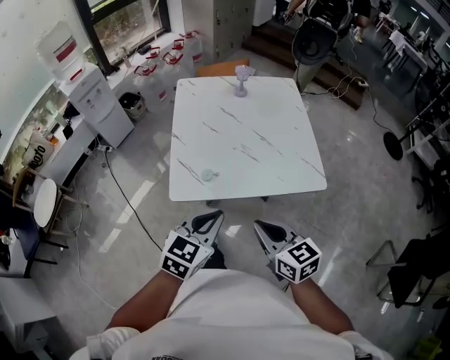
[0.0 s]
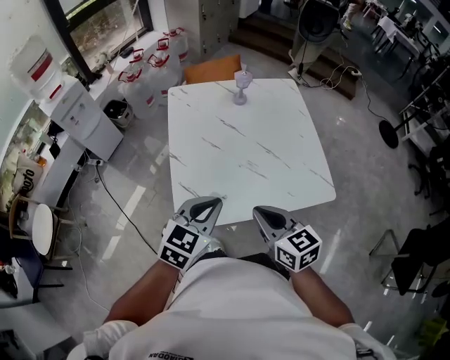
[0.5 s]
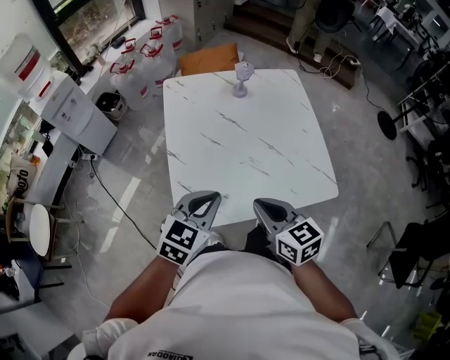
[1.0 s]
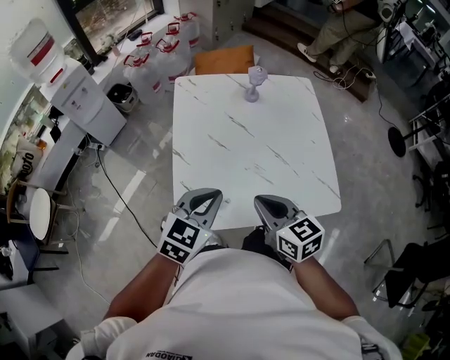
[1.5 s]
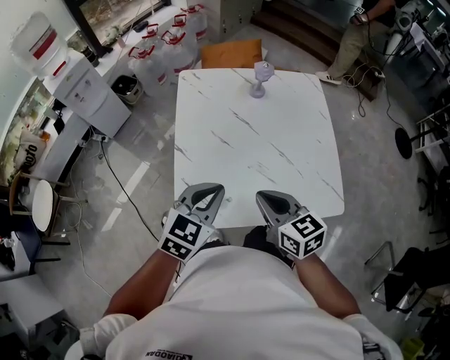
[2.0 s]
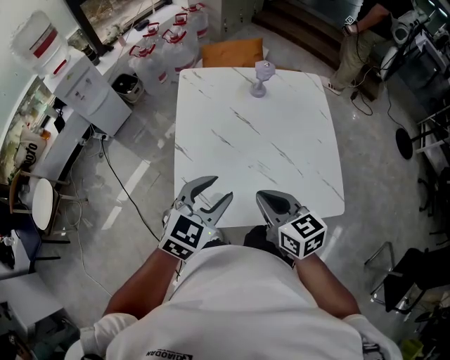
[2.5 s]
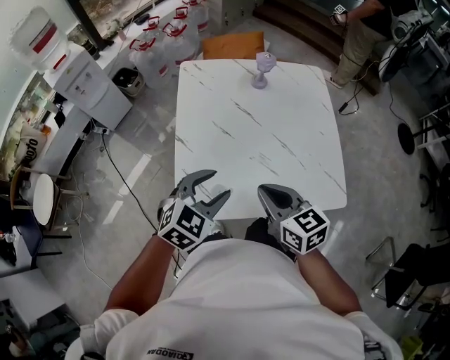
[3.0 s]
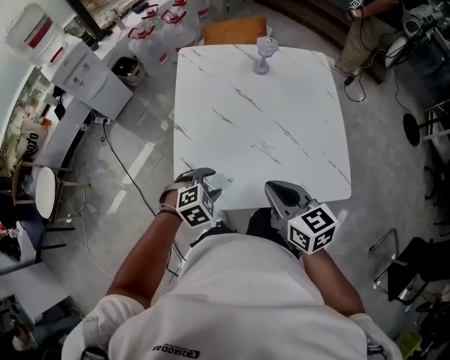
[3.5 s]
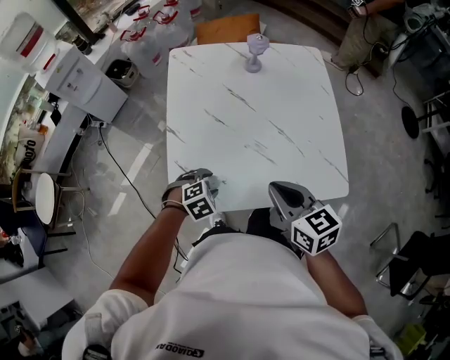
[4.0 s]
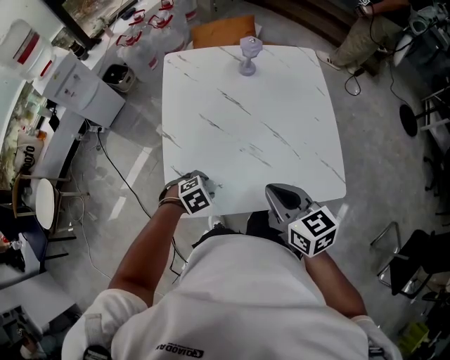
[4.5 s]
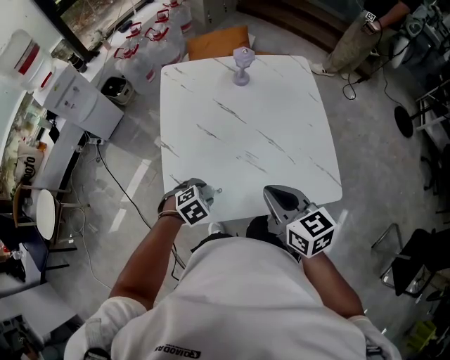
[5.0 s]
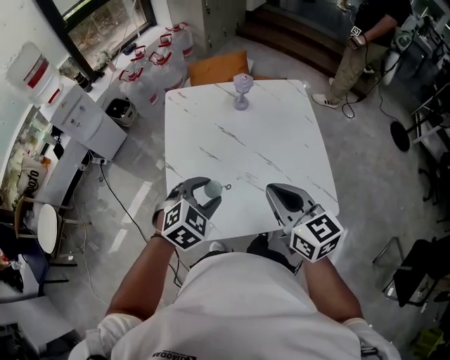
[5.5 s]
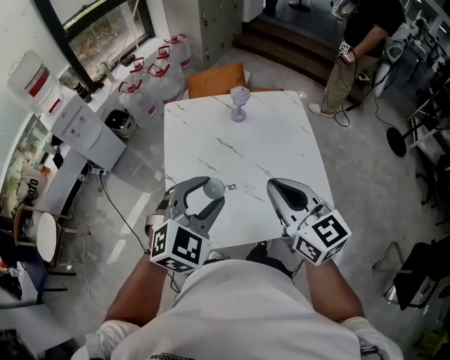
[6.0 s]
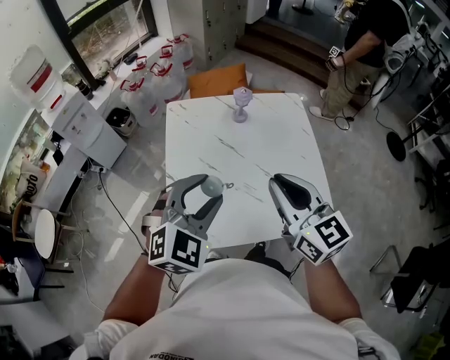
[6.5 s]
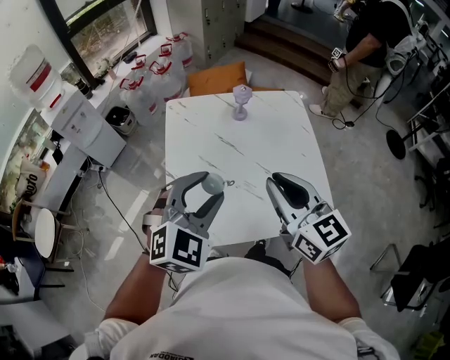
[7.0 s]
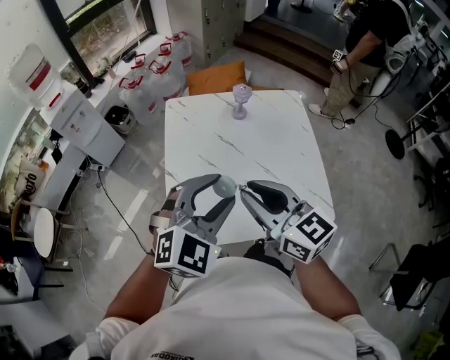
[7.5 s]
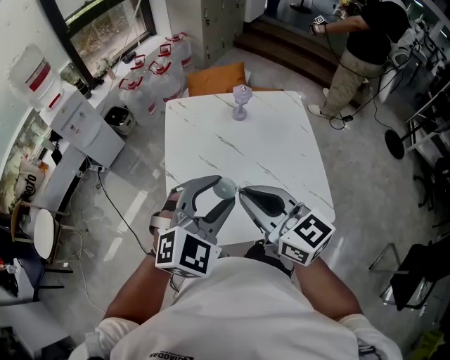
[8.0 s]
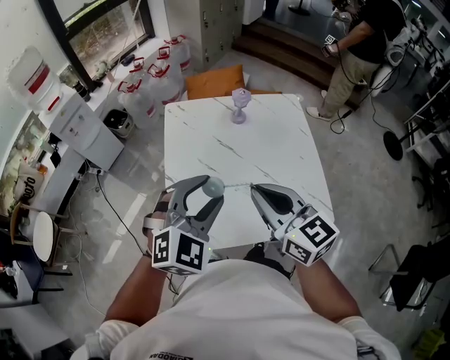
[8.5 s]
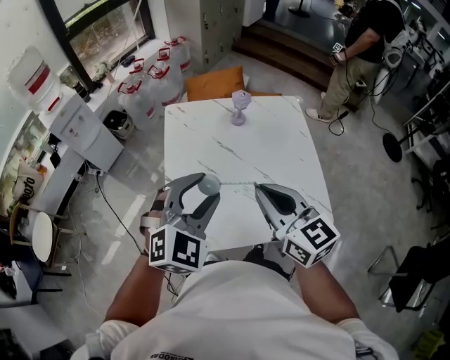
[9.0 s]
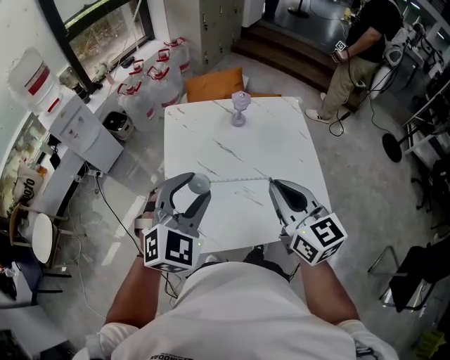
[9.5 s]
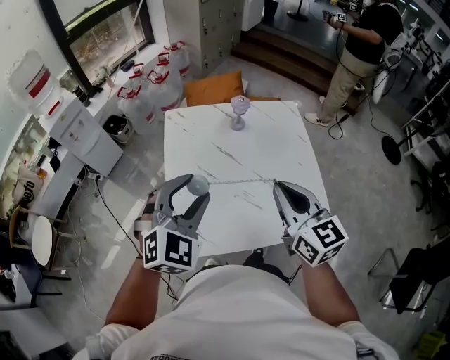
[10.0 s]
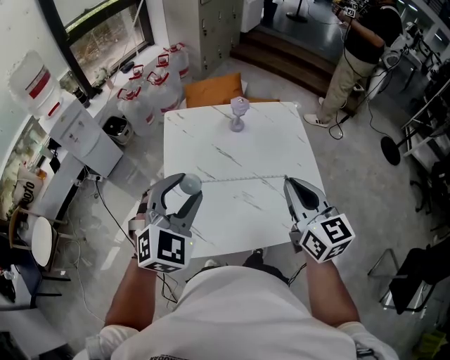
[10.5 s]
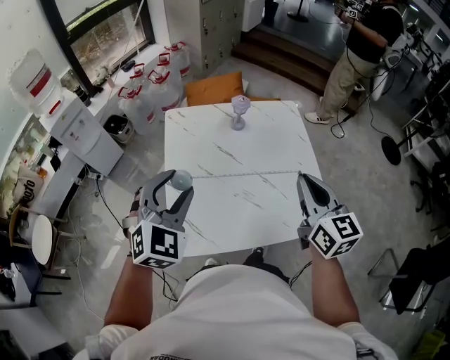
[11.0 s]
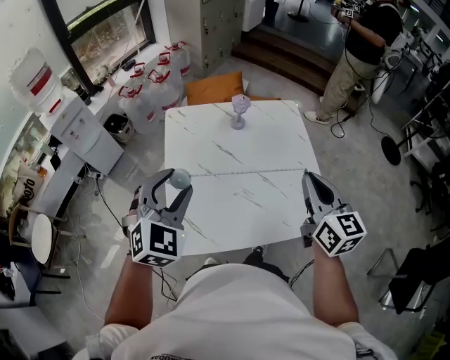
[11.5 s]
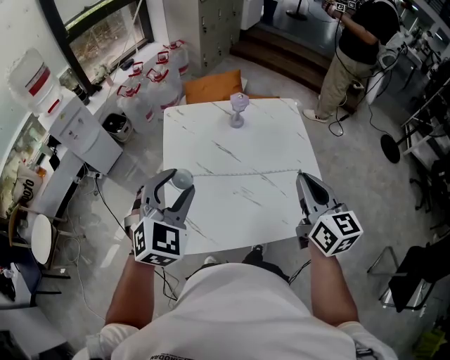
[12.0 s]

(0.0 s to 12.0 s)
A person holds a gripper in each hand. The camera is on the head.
0.0 s - 2.0 s: The two grippers go approximately 20 cm forward.
2.0 s - 4.0 s: The left gripper shifts about 25 cm downward, points its fingers roughly 40 degrees further downward, and opens up; the right gripper shifts approximately 5 cm to the right.
4.0 s - 6.0 s: The left gripper goes roughly 35 cm upward, and points its fingers approximately 40 degrees further upward, while the right gripper moves upward, roughly 15 cm, and turns by some 20 degrees.
6.0 s - 8.0 s: The right gripper goes approximately 5 cm to the left.
8.0 s - 10.0 s: The right gripper goes roughly 10 cm to the right, and changes its angle by approximately 20 degrees. The left gripper travels to the left by some 5 cm.
10.0 s - 12.0 s: The right gripper moves to the right, about 5 cm.

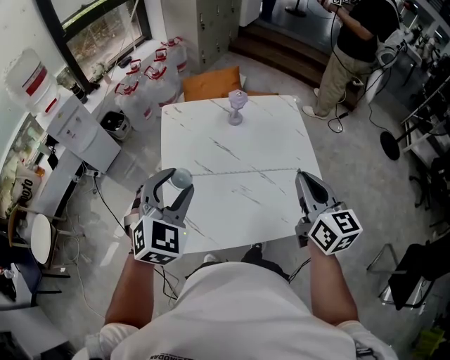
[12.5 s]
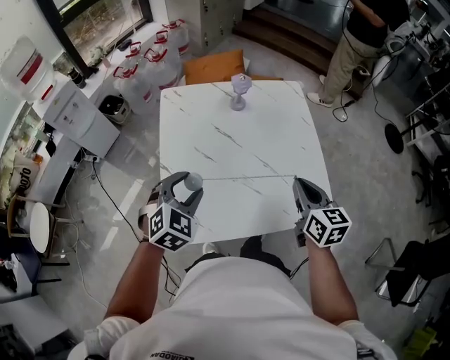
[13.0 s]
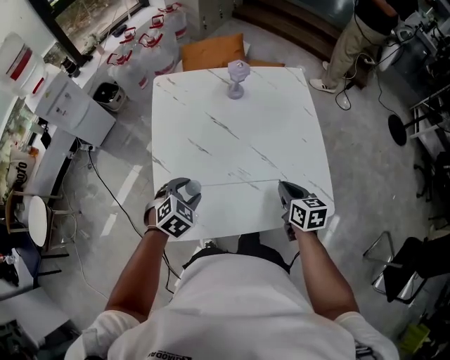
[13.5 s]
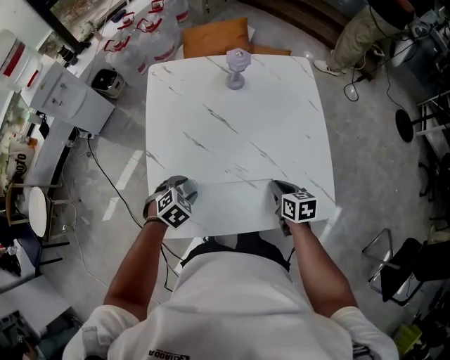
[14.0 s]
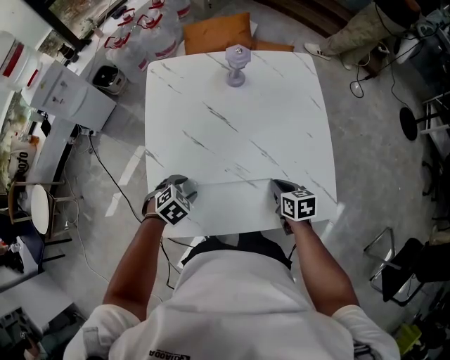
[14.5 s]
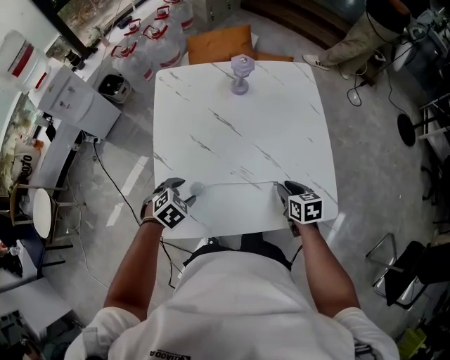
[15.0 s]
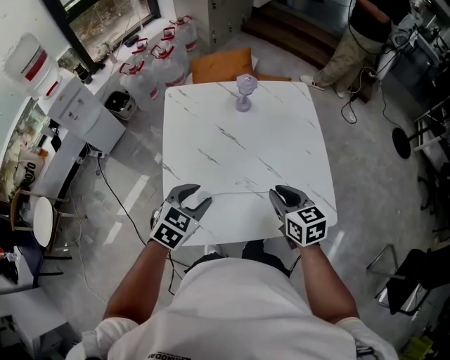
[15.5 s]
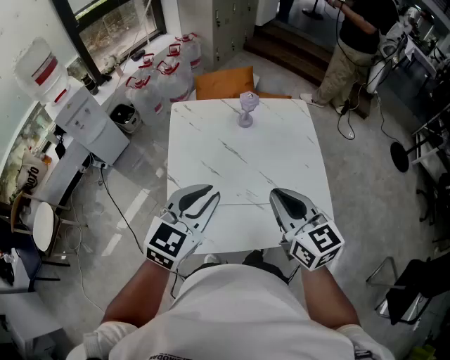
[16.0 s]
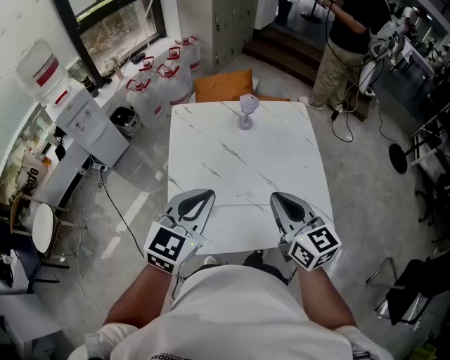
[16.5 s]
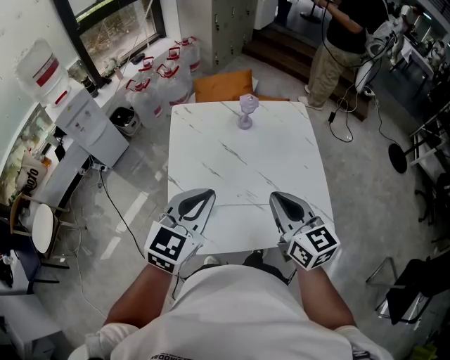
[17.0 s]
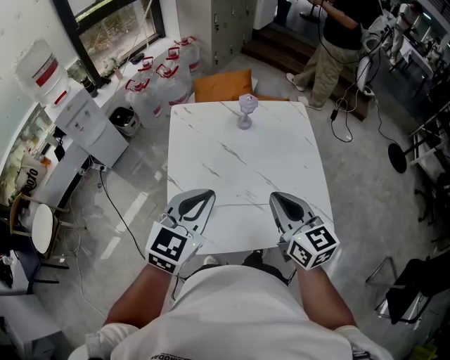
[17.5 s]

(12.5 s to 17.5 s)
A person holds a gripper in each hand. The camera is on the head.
12.5 s - 15.0 s: The grippers both shift downward by about 30 cm. The right gripper tilts its fingers approximately 40 degrees downward, and opens. Meanwhile the left gripper tips its fingers downward by some 40 degrees.
15.0 s - 17.5 s: The right gripper heads upward and to the left, covering about 30 cm, angles its fingers upward, by approximately 40 degrees, and closes, while the left gripper goes about 30 cm upward, points its fingers about 50 degrees further upward, and closes up.

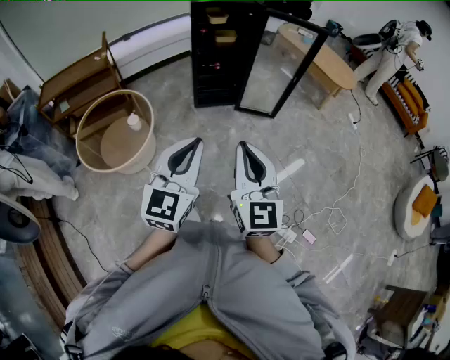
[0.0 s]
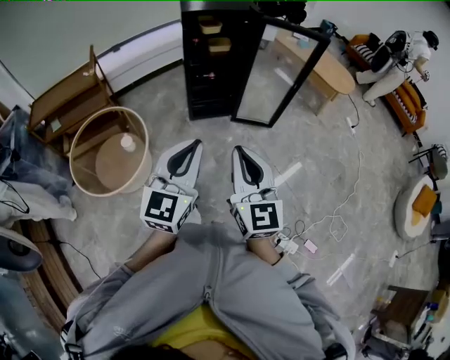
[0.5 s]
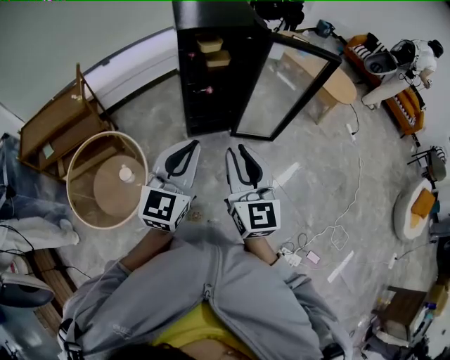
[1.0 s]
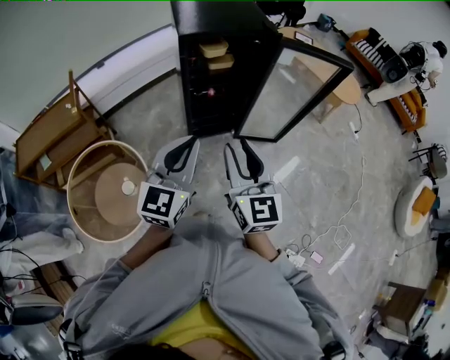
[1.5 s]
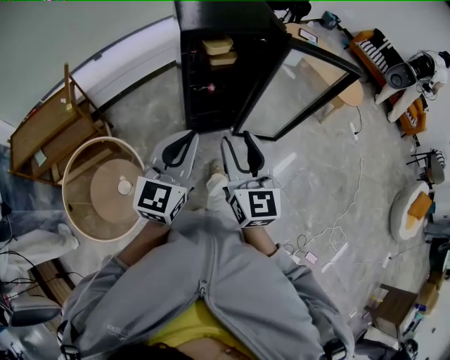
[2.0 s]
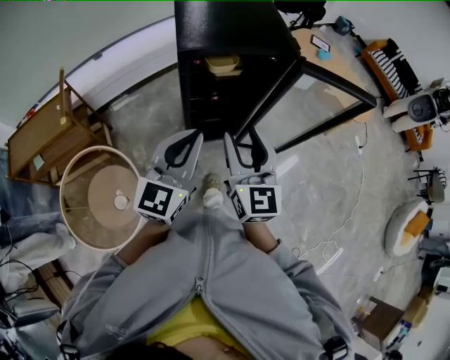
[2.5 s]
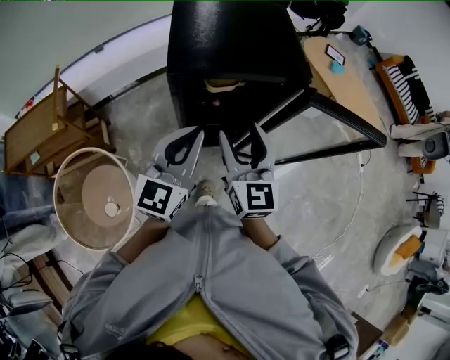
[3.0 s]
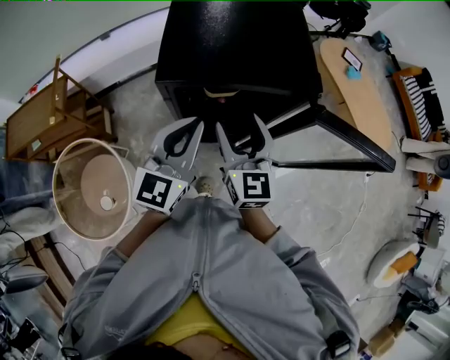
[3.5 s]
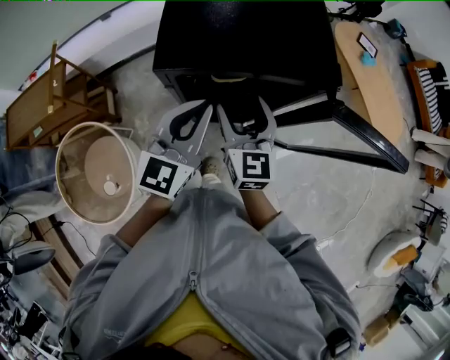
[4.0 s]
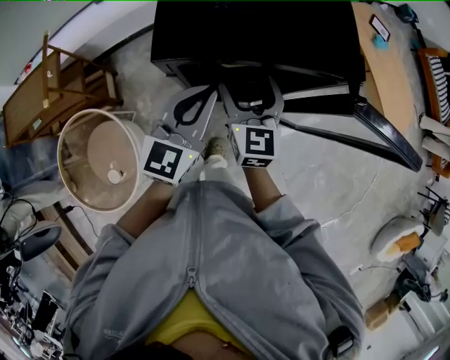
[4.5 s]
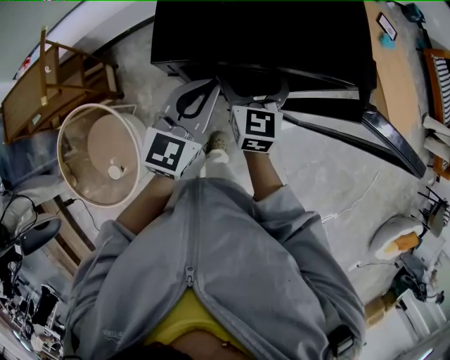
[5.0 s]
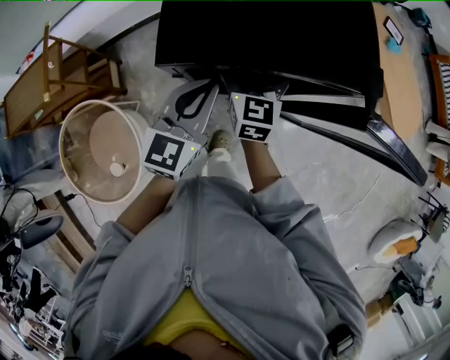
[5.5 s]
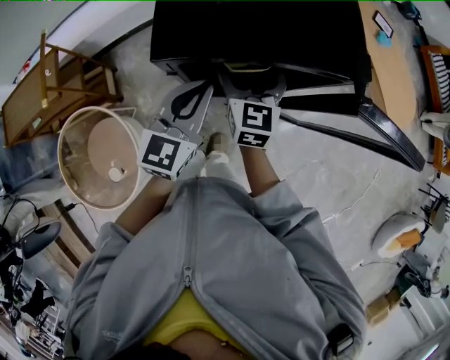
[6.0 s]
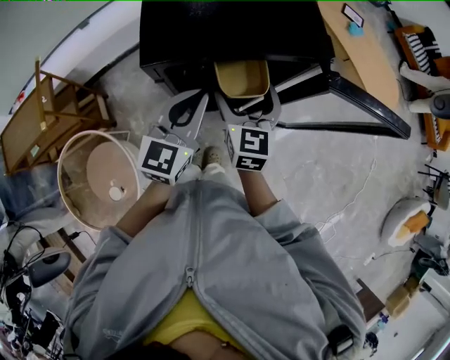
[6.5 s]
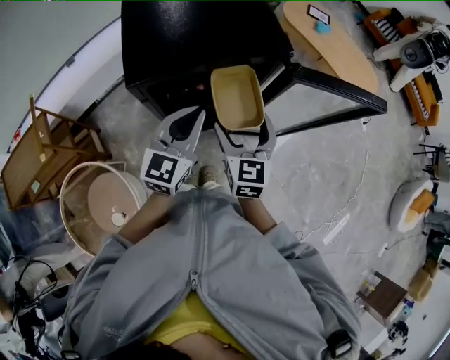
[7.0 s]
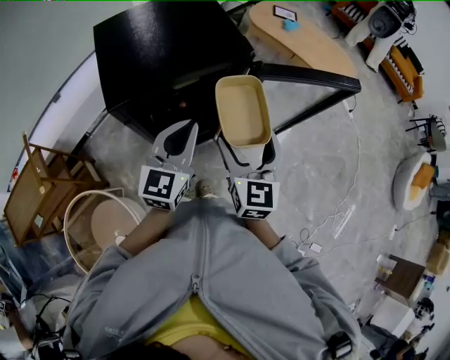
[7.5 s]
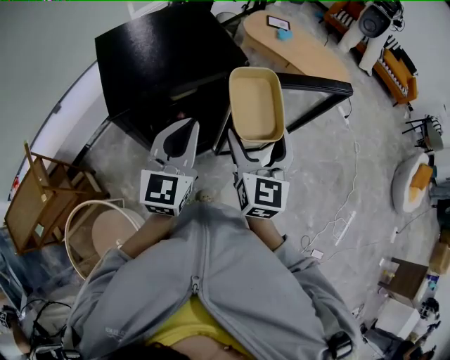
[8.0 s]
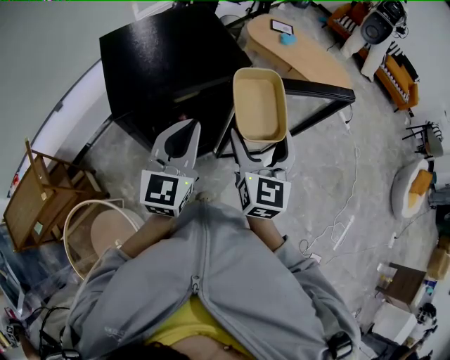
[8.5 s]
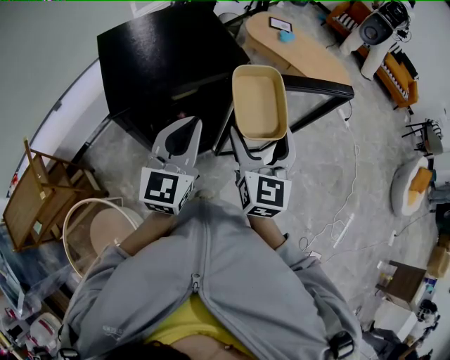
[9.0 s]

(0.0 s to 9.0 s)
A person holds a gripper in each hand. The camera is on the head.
0.0 s - 2.0 s: Both grippers are carried forward, some 50 cm. The right gripper opens.
2.0 s - 4.5 s: The grippers both shift forward by roughly 40 cm.
4.5 s - 7.0 s: The left gripper travels to the right by roughly 5 cm; the right gripper shifts approximately 15 cm to the right and backward.
7.0 s - 9.0 s: The right gripper shifts approximately 15 cm upward and to the right, and turns by some 20 degrees; the left gripper heads upward, covering roughly 10 cm.

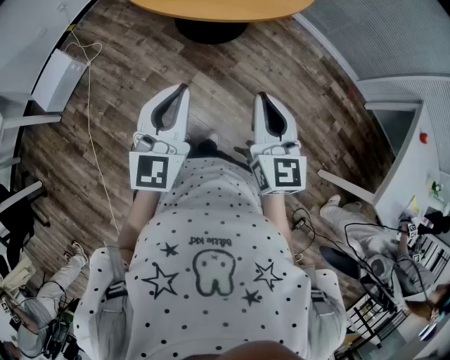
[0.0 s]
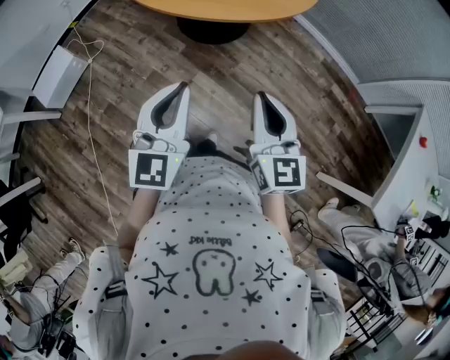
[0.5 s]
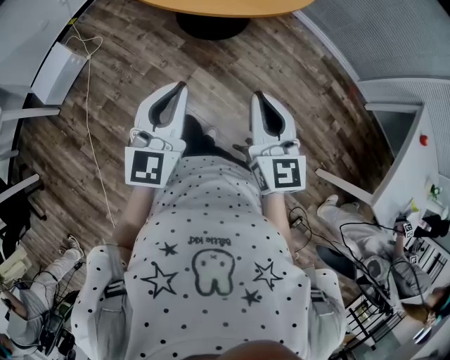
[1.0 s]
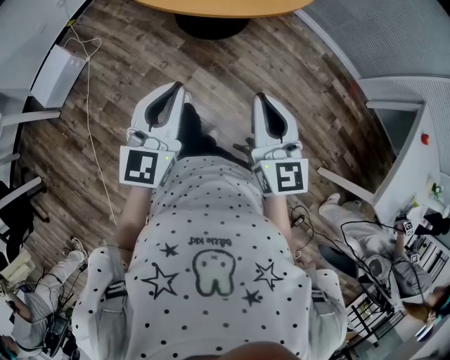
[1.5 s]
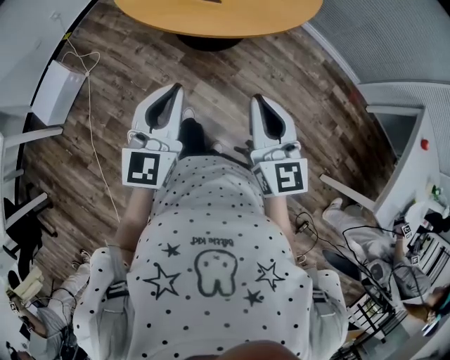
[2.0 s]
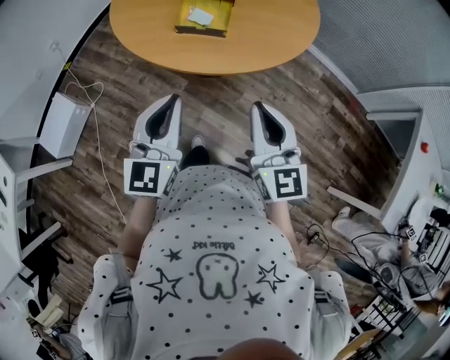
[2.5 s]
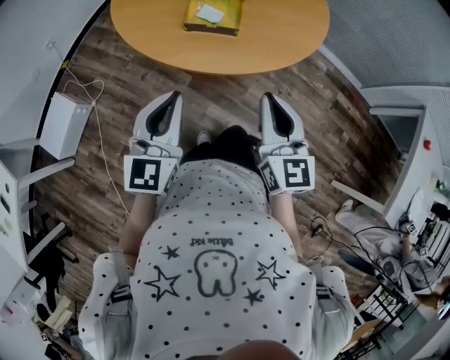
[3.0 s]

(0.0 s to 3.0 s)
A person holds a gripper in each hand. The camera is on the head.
0.0 s - 1.5 s: There are only small adjustments of the grippers.
1.5 s - 3.0 s: The two grippers go about 25 cm forward and to the left.
